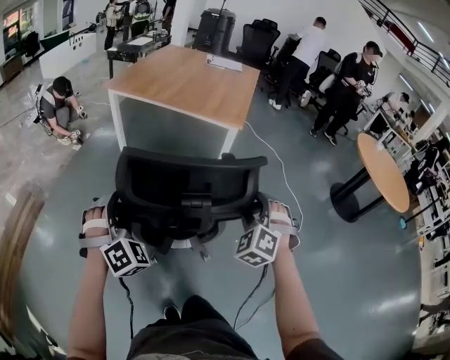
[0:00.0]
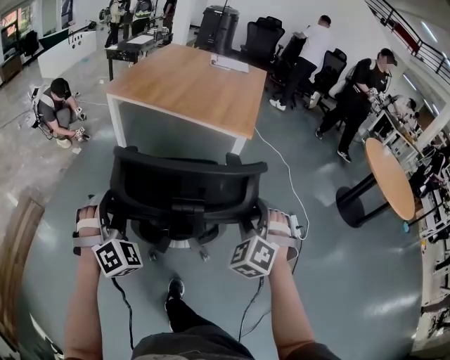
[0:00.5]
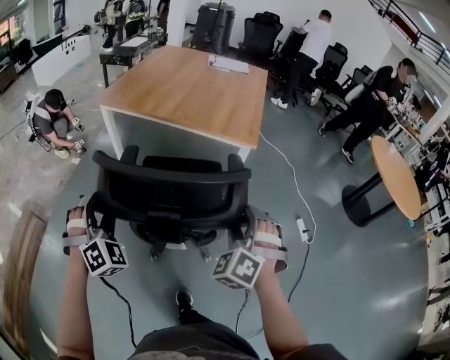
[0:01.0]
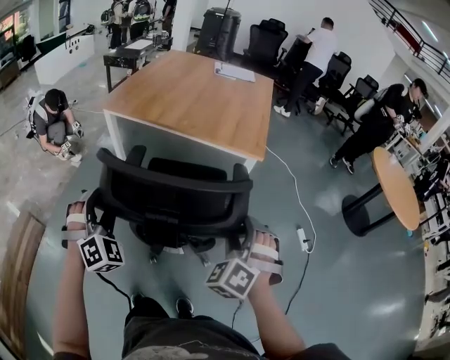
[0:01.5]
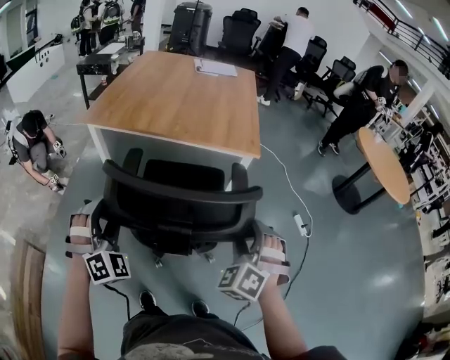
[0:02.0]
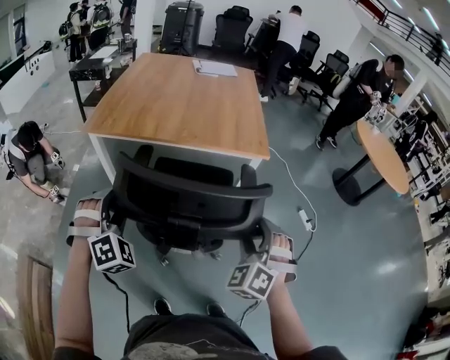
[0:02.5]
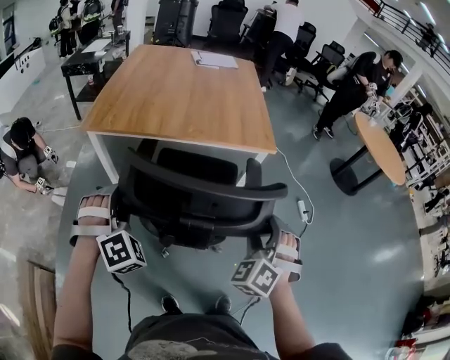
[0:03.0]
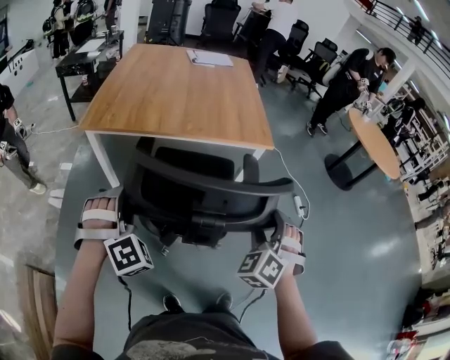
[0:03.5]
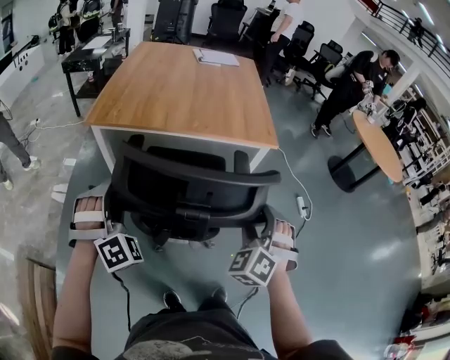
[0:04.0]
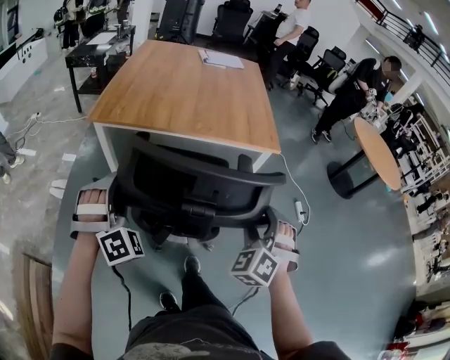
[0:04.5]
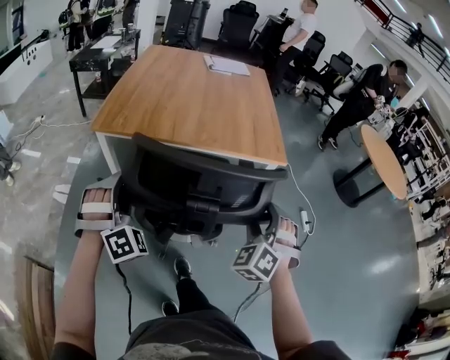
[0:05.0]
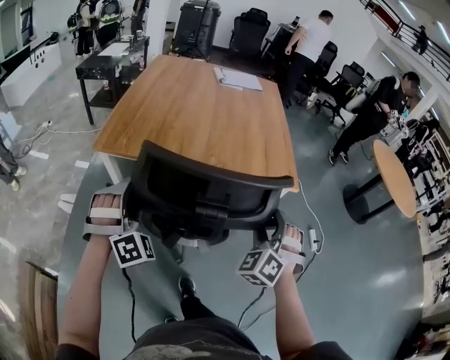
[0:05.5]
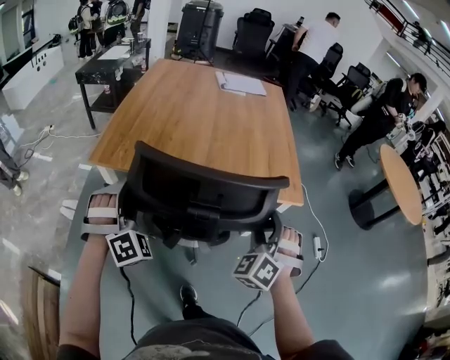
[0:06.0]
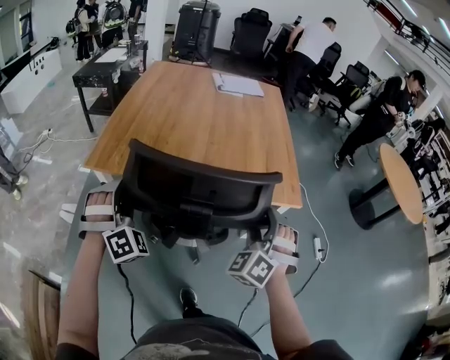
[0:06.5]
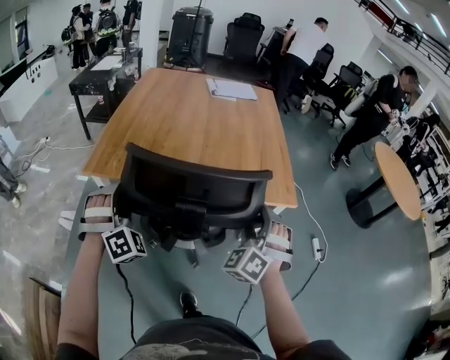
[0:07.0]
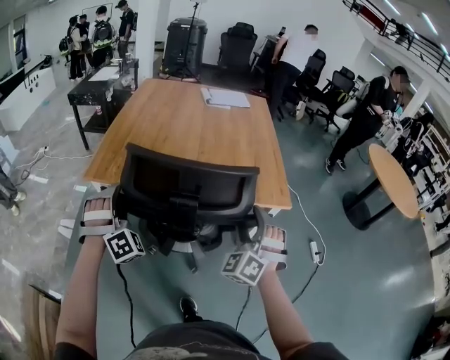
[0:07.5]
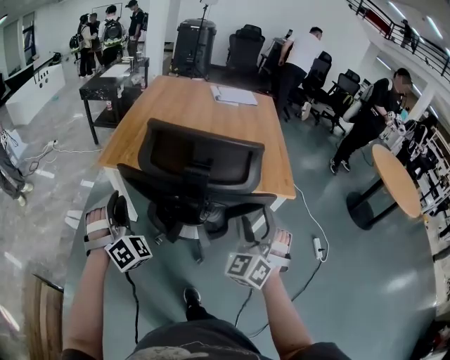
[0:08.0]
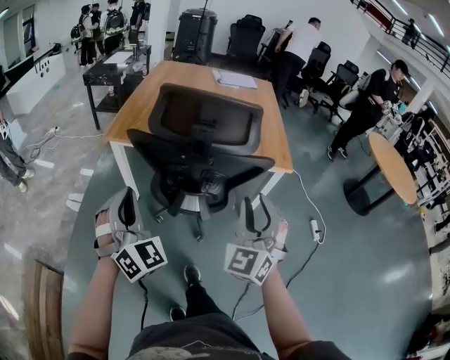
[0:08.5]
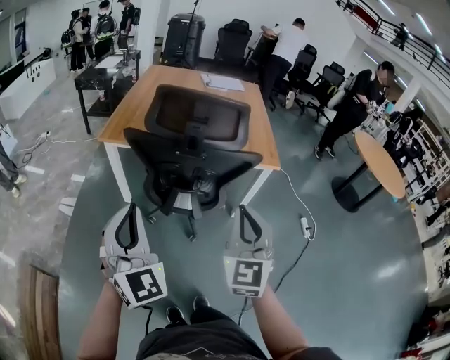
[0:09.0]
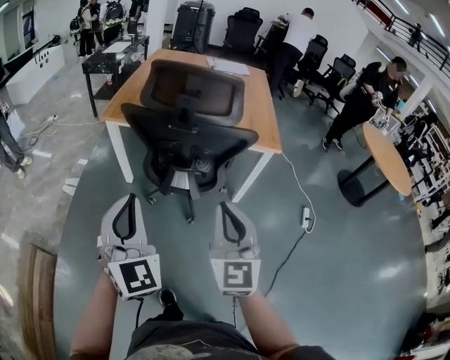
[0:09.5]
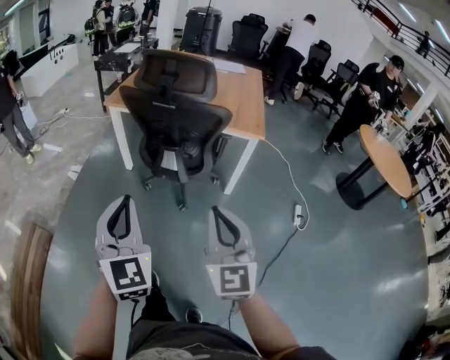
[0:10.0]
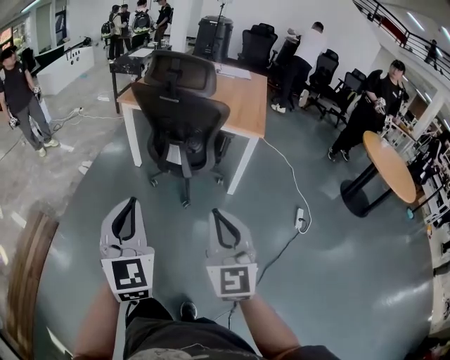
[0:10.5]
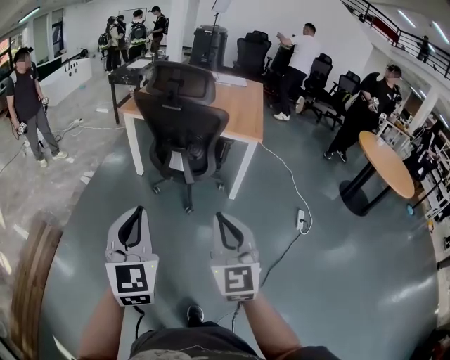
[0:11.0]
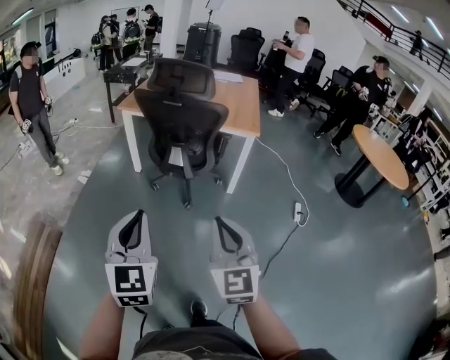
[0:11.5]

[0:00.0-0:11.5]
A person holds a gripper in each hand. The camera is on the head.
0:00.0 to 0:02.0: The grippers both shift forward and to the left by roughly 25 cm.
0:02.0 to 0:04.0: The left gripper is displaced to the left and forward by some 15 cm; the right gripper moves to the left, some 10 cm.
0:04.0 to 0:06.0: Both grippers travel together forward, approximately 20 cm.
0:06.0 to 0:07.5: The left gripper travels forward by roughly 5 cm.
0:07.5 to 0:09.5: Both grippers travel together backward, about 30 cm. The left gripper rotates around the line of its fingers by roughly 50 degrees, counterclockwise from behind, and closes up. Meanwhile the right gripper twists some 50 degrees clockwise, seen from behind, and closes.
0:09.5 to 0:11.5: The two grippers go some 30 cm backward.

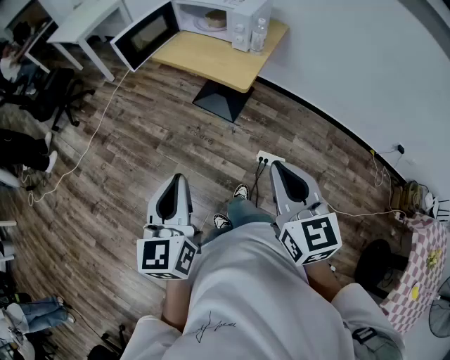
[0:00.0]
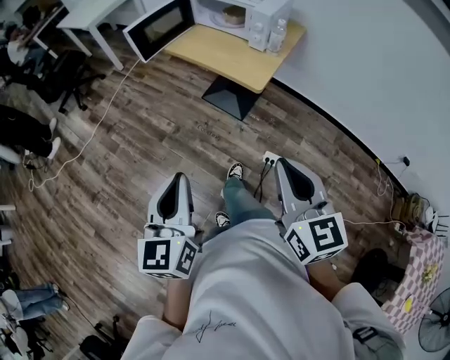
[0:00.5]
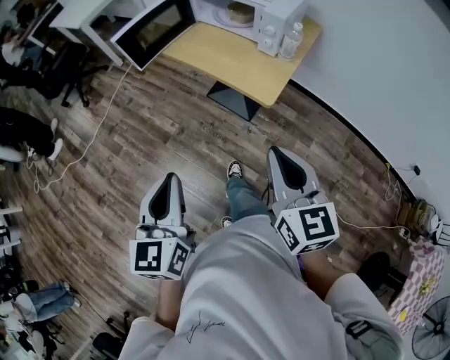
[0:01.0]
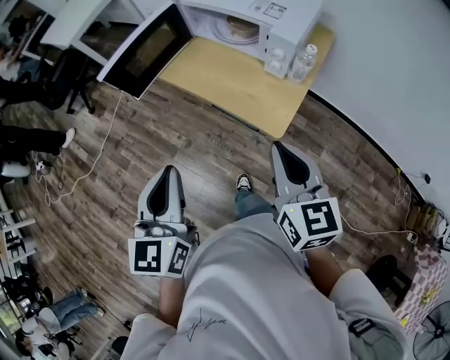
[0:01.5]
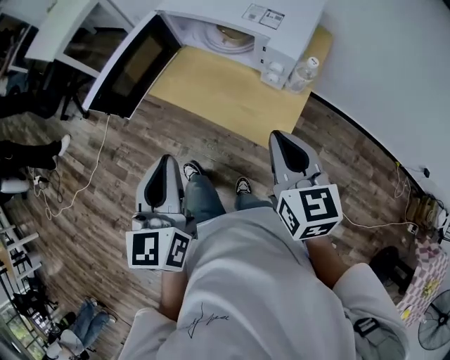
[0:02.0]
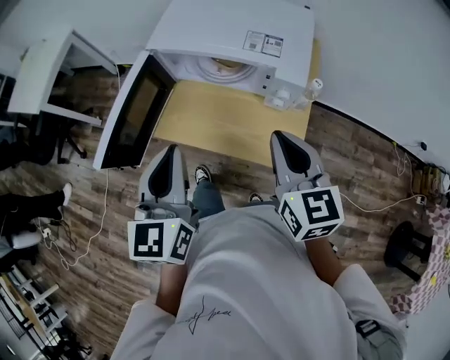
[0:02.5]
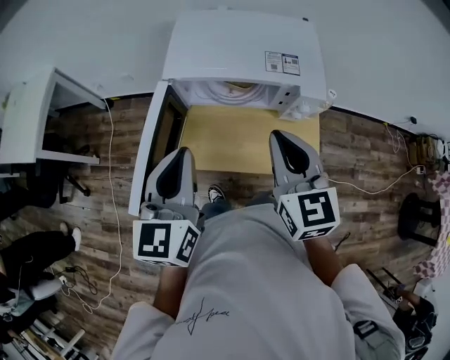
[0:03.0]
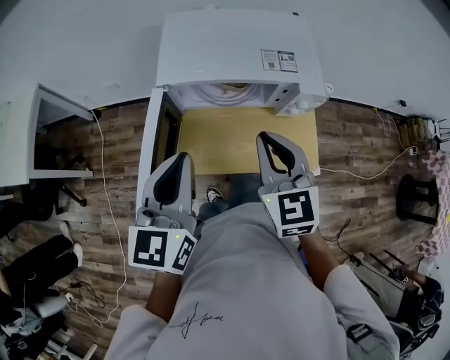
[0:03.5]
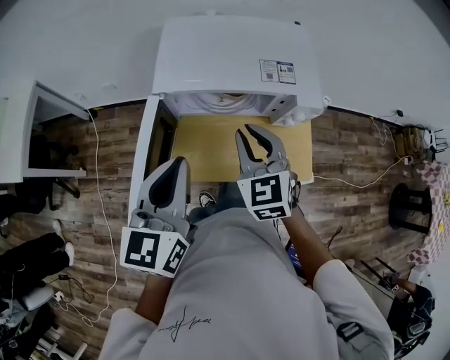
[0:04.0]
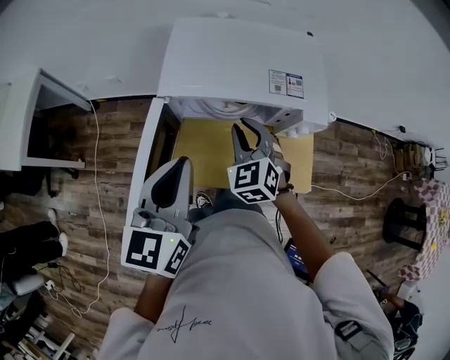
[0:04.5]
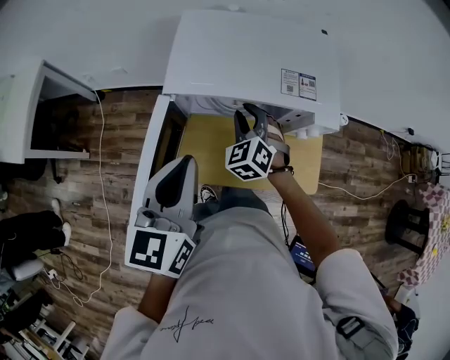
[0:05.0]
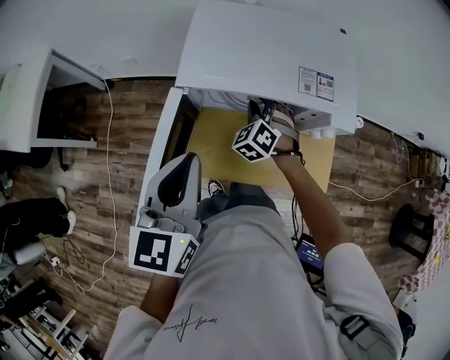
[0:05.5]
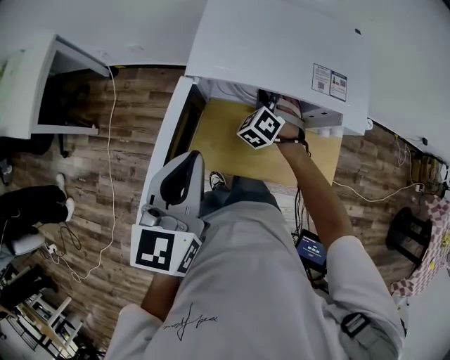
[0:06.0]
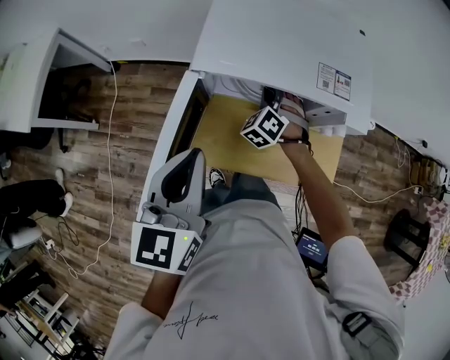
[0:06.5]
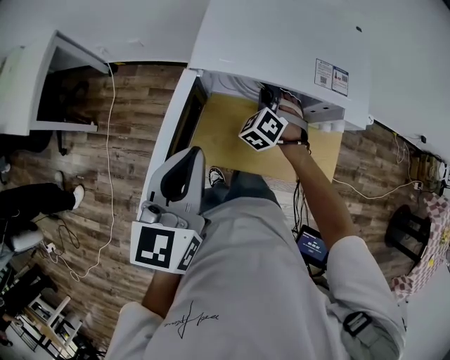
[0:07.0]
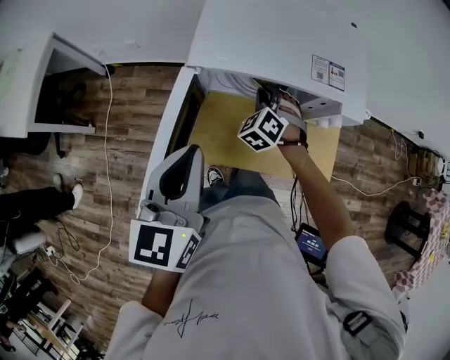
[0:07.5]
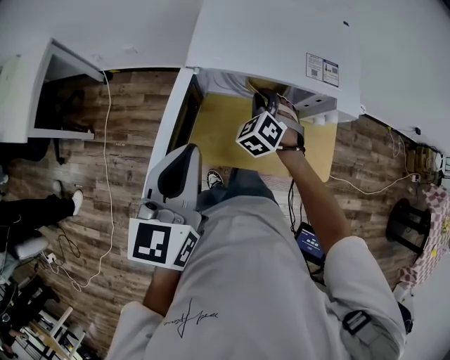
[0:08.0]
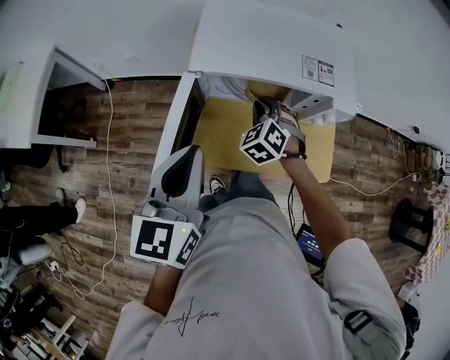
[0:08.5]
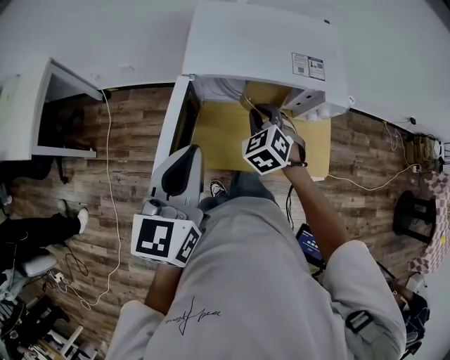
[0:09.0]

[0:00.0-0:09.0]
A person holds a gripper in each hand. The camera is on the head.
0:00.0 to 0:02.0: The pair of grippers is taken forward, some 50 cm.
0:02.0 to 0:04.5: The right gripper moves approximately 30 cm, and turns by some 40 degrees. The left gripper ends up about 30 cm from where it was, and swivels approximately 40 degrees.
0:04.5 to 0:07.0: The right gripper shifts some 15 cm downward and forward, and swivels some 30 degrees.
0:07.0 to 0:09.0: The right gripper shifts approximately 10 cm backward and upward.

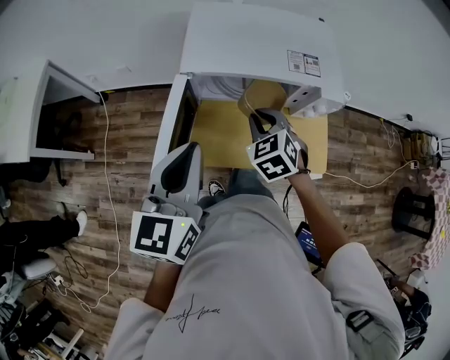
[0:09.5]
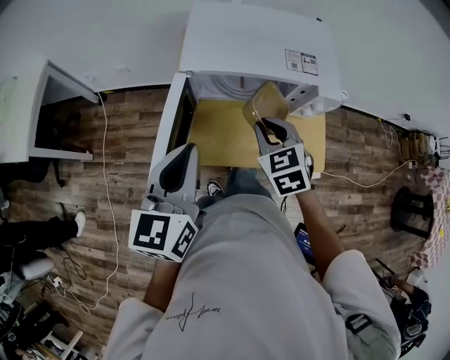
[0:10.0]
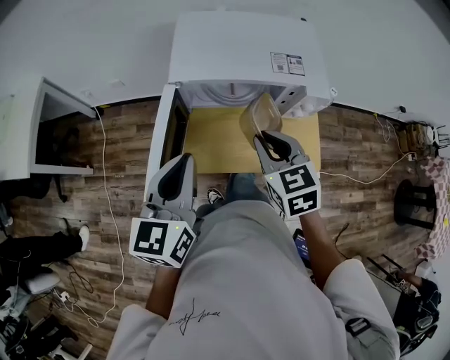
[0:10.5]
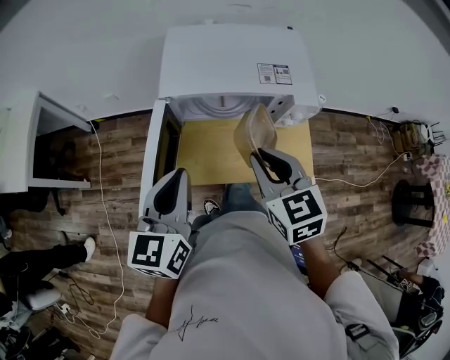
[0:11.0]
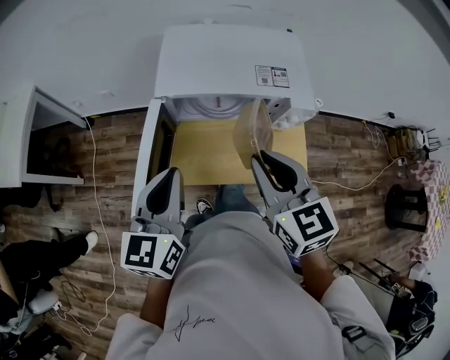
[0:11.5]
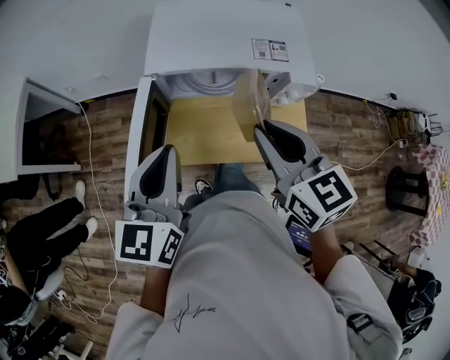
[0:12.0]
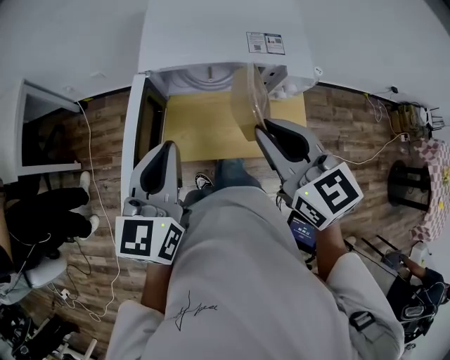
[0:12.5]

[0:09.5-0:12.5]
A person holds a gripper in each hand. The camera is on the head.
0:09.5 to 0:11.0: The right gripper moves upward and backward, approximately 15 cm, and turns by some 30 degrees.
0:11.0 to 0:12.5: The grippers make only small movements.

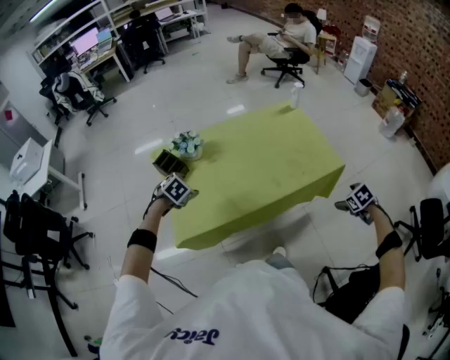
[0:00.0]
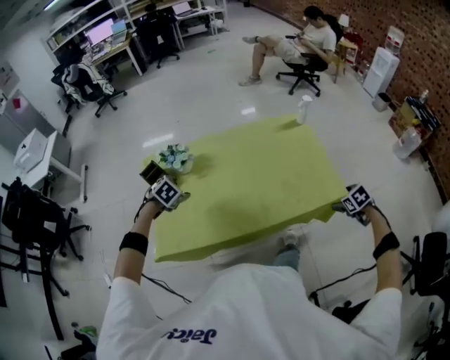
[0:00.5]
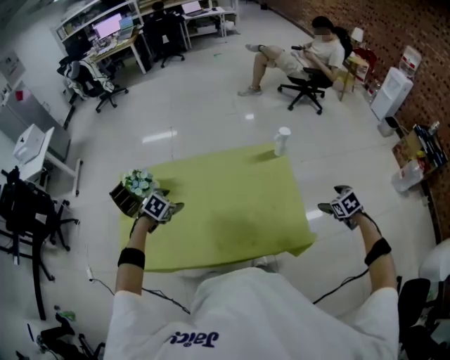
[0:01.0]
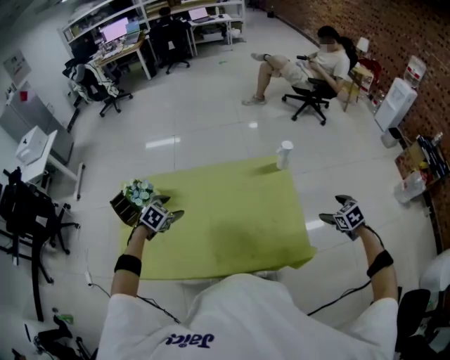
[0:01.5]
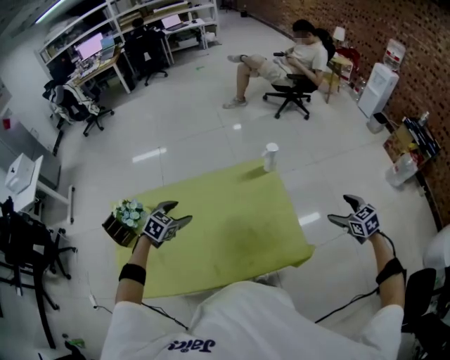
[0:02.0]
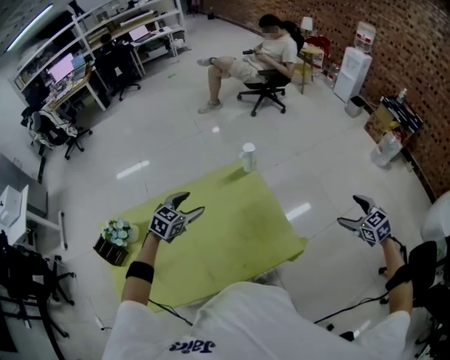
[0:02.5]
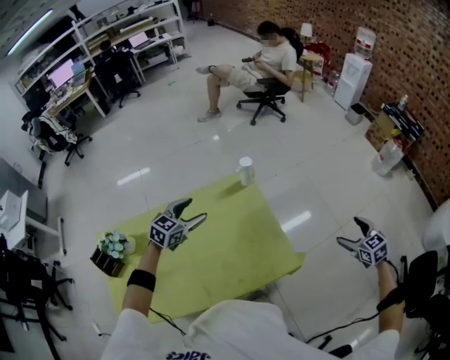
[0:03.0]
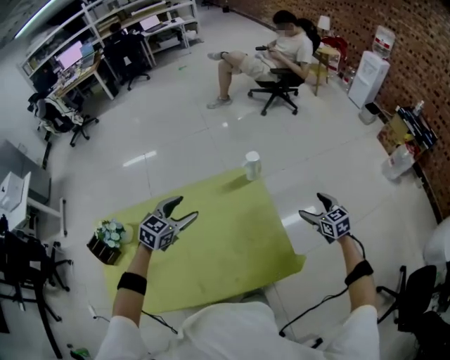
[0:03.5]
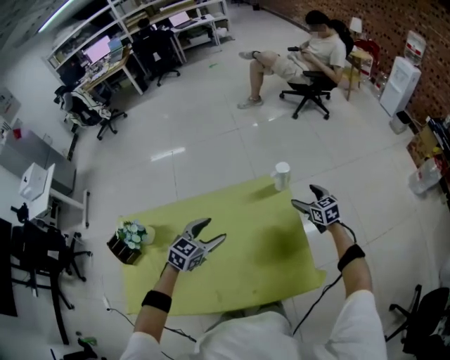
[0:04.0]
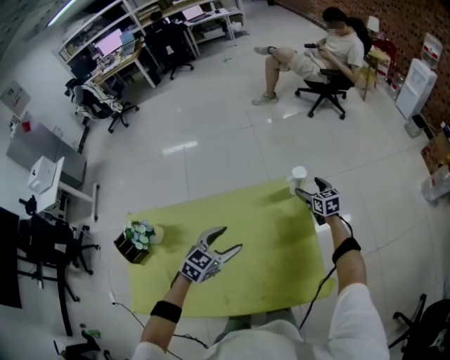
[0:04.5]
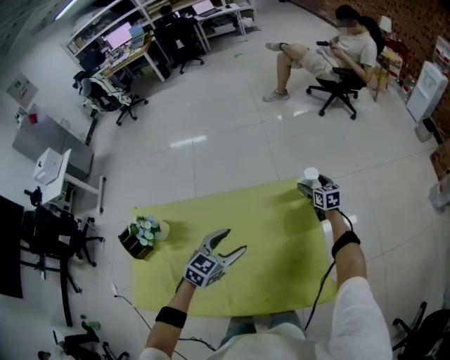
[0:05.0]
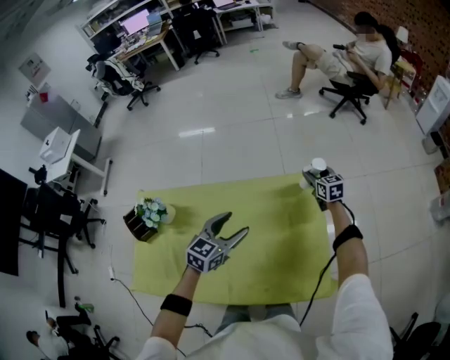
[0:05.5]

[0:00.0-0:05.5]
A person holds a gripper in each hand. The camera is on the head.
0:00.0 to 0:02.0: The two grippers go about 40 cm forward and to the right. The right gripper changes its angle by some 30 degrees.
0:02.0 to 0:03.5: The left gripper travels to the right, forward and upward by approximately 15 cm, while the right gripper is displaced forward and downward by some 10 cm.
0:03.5 to 0:05.5: The right gripper heads forward and to the left, covering roughly 35 cm, and closes its fingers.
